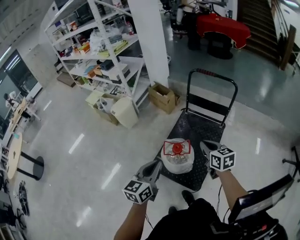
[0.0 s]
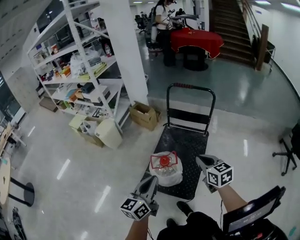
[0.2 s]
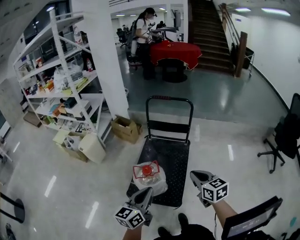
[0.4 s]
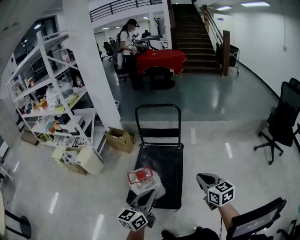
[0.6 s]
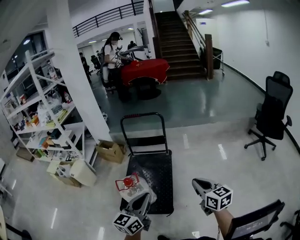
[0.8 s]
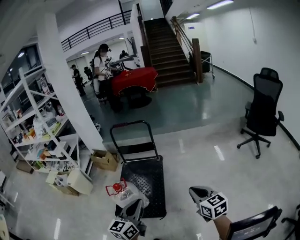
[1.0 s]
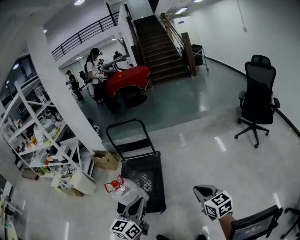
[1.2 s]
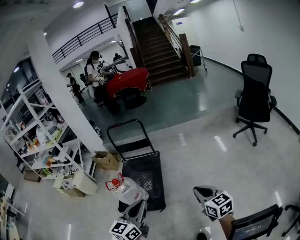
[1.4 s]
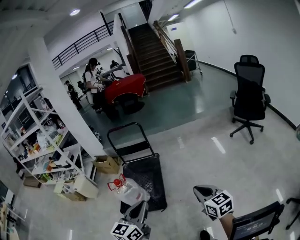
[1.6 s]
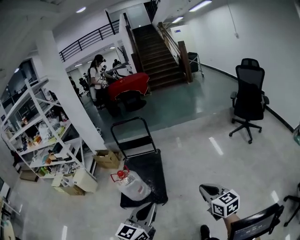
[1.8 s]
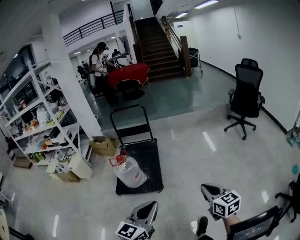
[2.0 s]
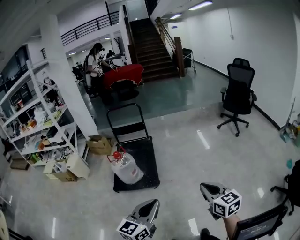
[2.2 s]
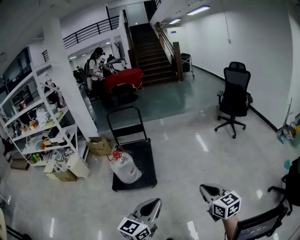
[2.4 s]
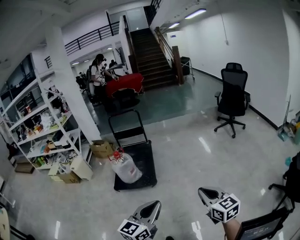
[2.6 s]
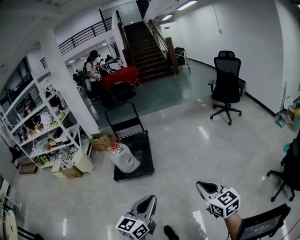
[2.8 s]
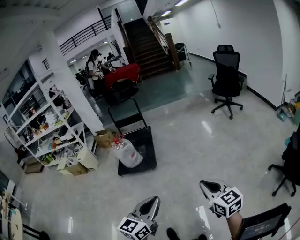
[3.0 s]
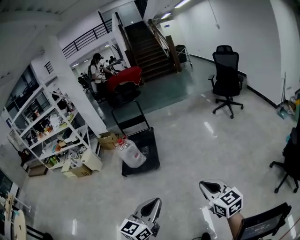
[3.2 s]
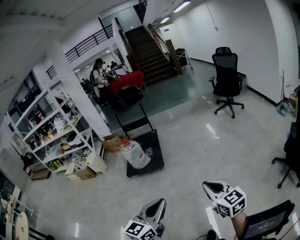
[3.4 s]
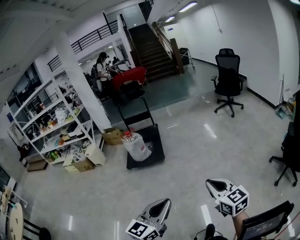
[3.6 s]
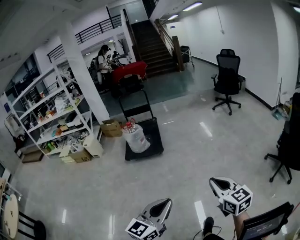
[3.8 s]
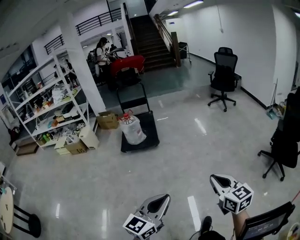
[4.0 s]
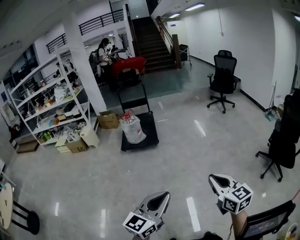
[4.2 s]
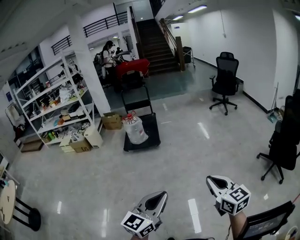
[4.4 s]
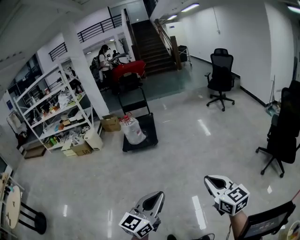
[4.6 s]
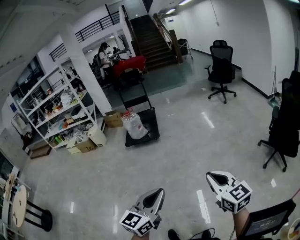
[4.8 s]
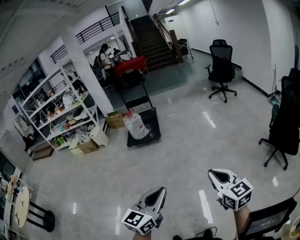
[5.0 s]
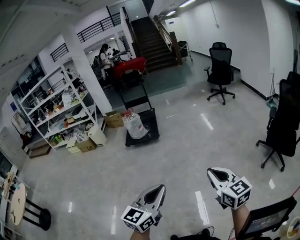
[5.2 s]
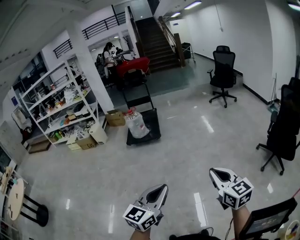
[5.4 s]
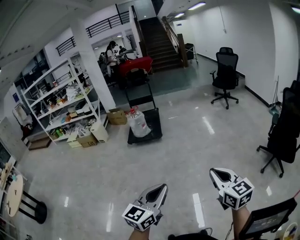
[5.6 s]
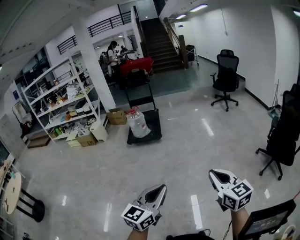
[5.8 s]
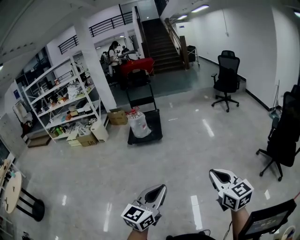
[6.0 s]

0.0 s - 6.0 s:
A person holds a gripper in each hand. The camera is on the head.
0.0 s - 1.6 s: The two grippers travel together, roughly 60 cm. The right gripper swivels about 30 degrees. The left gripper turns by about 30 degrees.
1.6 s - 3.0 s: Both grippers are carried backward, some 60 cm.
3.0 s - 4.4 s: The two grippers travel together, backward, about 40 cm.
4.4 s - 6.0 s: The grippers both shift backward and to the right by about 15 cm.

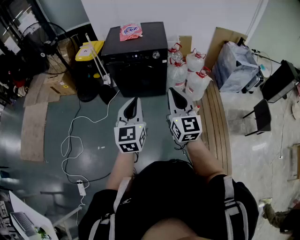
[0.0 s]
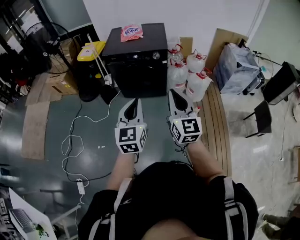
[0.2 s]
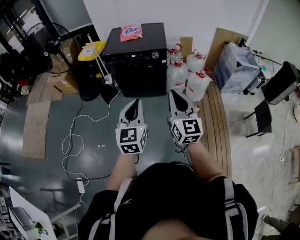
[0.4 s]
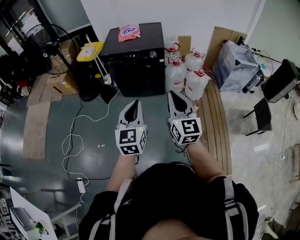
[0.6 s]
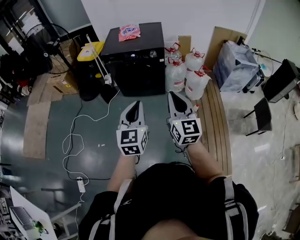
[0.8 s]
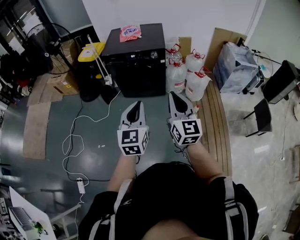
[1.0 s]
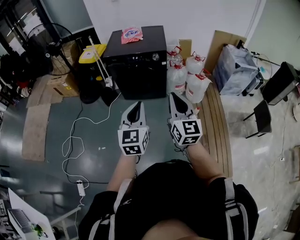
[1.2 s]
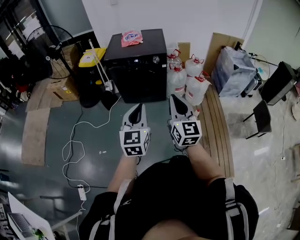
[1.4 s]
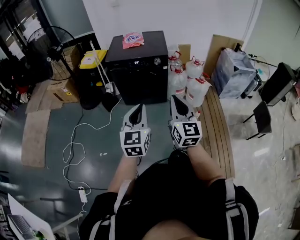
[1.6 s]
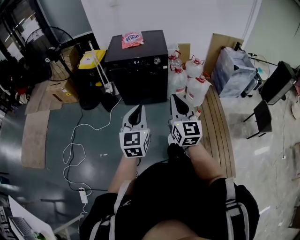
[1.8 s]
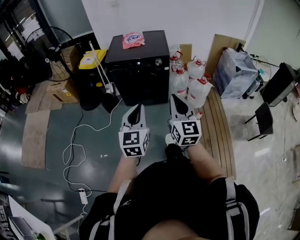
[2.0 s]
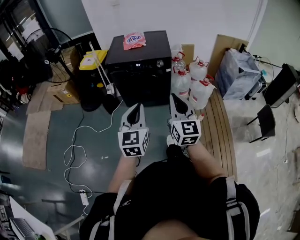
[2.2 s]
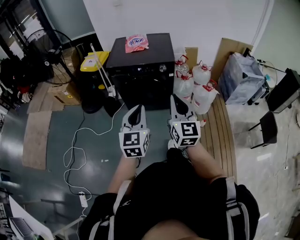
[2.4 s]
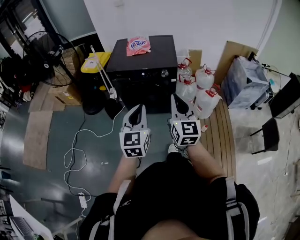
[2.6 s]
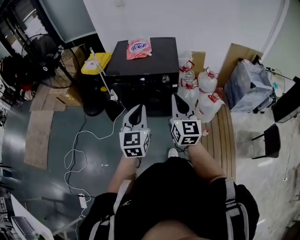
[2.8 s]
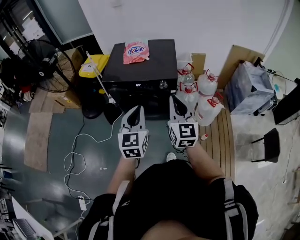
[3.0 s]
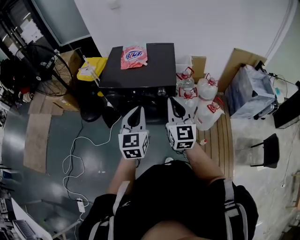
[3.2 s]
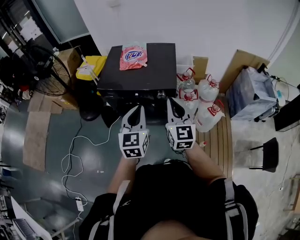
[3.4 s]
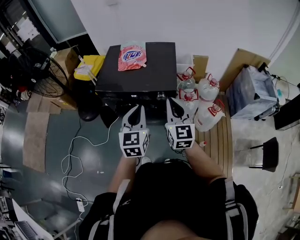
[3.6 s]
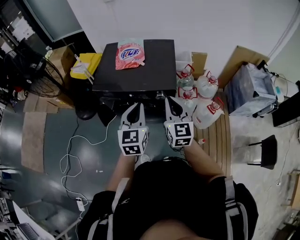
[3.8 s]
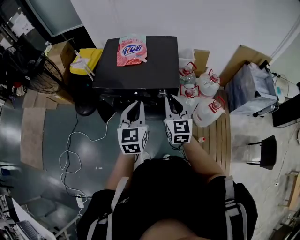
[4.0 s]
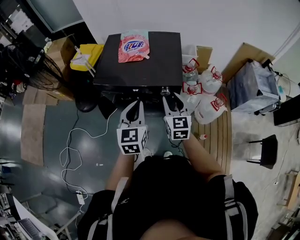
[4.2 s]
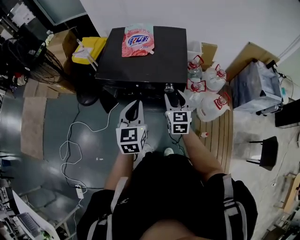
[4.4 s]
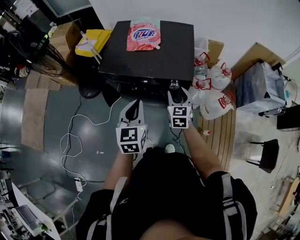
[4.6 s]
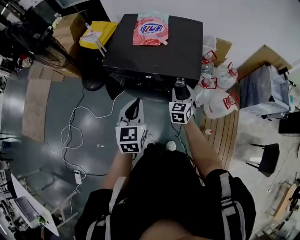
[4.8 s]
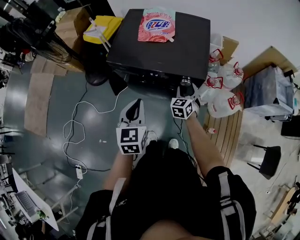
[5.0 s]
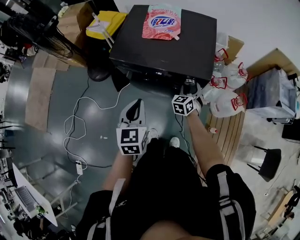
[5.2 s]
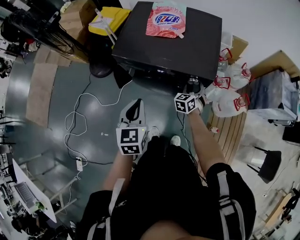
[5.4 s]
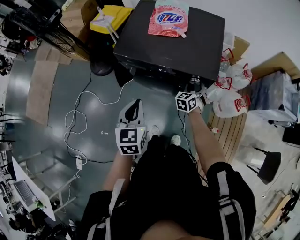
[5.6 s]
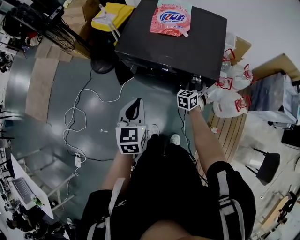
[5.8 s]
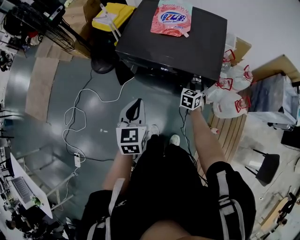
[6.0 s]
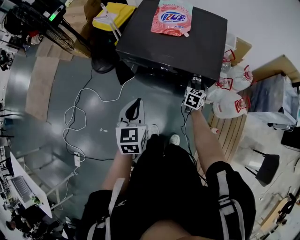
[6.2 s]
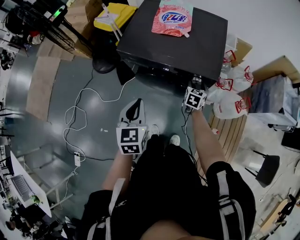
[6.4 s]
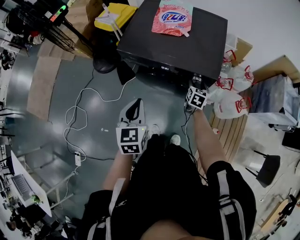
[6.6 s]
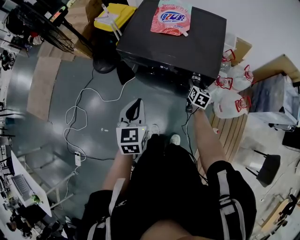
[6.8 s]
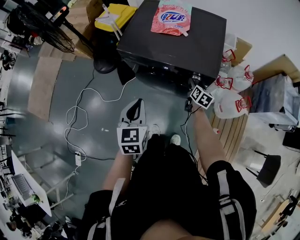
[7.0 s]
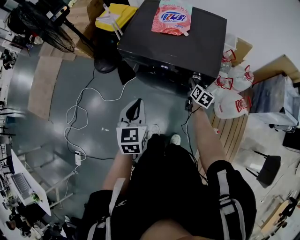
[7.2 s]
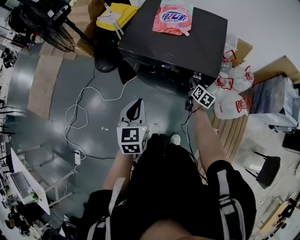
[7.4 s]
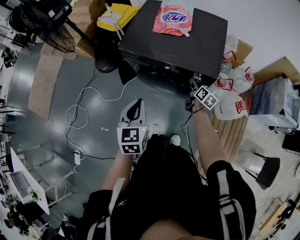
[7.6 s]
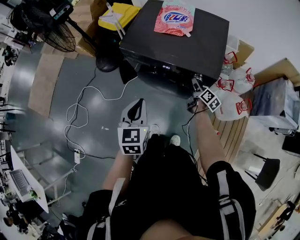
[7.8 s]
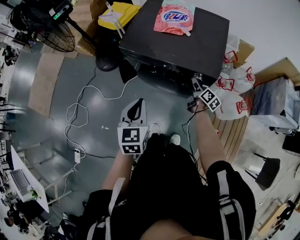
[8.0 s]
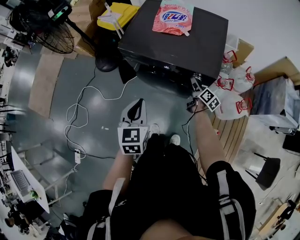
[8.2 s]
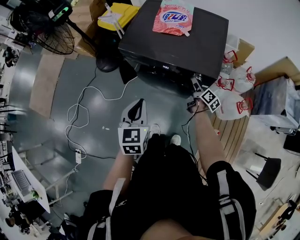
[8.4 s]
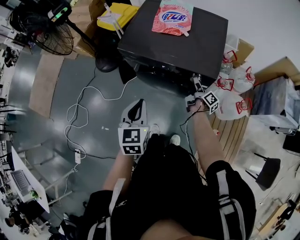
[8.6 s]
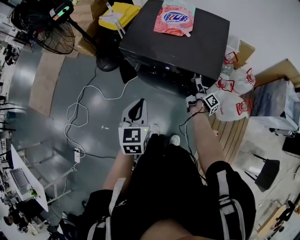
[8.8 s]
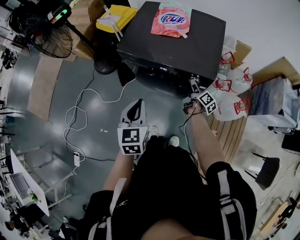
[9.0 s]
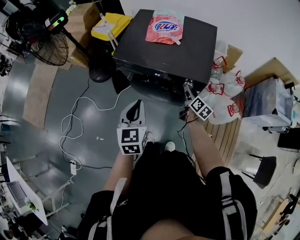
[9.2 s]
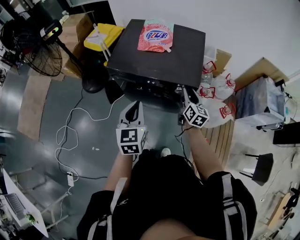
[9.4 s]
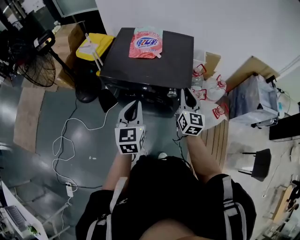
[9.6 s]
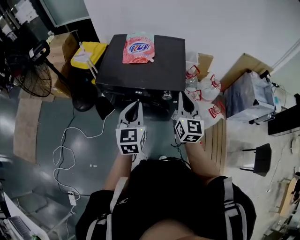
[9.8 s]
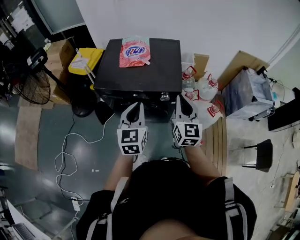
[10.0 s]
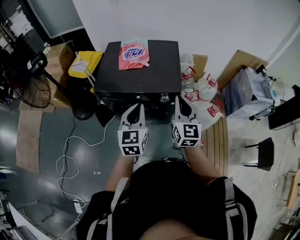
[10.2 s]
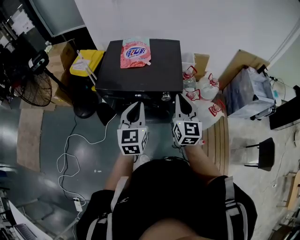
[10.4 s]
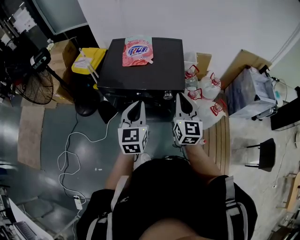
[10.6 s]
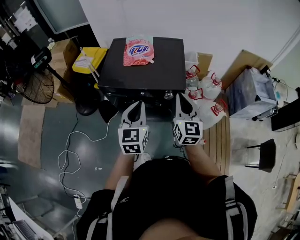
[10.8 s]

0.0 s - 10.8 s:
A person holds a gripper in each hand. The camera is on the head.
0.0 s - 1.6 s: The grippers both shift backward by approximately 5 cm.
1.6 s - 3.0 s: The grippers both shift forward by some 35 cm.
3.0 s - 4.6 s: The left gripper heads forward and downward, covering about 20 cm; the right gripper shifts approximately 30 cm forward and downward, swivels approximately 30 degrees, and opens.
4.6 s - 6.2 s: The left gripper travels to the left by roughly 5 cm; the right gripper is displaced downward and forward by approximately 15 cm, and rotates about 20 degrees.
6.2 s - 7.8 s: The right gripper rolls clockwise, seen from behind, by about 50 degrees.
7.8 s - 9.2 s: The right gripper is displaced upward by roughly 5 cm.
9.2 s - 10.8 s: The right gripper shifts some 25 cm upward, rotates around the line of its fingers by approximately 40 degrees, counterclockwise from behind, and closes up. The left gripper goes roughly 10 cm upward and to the right.

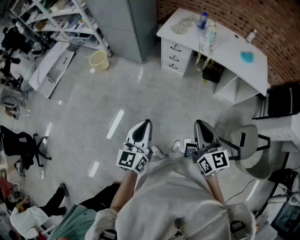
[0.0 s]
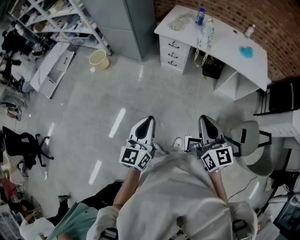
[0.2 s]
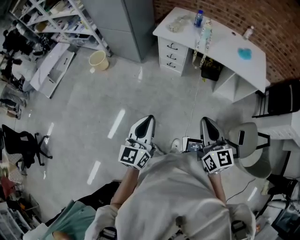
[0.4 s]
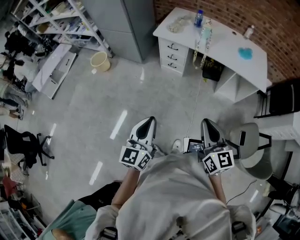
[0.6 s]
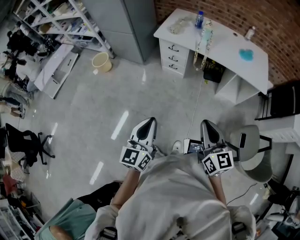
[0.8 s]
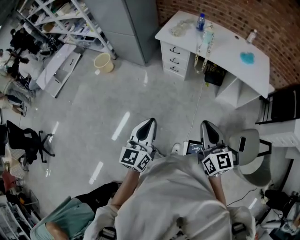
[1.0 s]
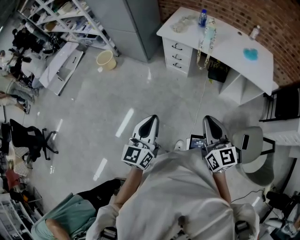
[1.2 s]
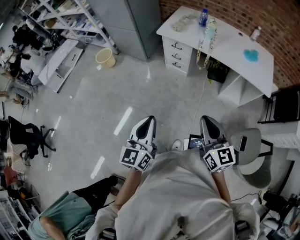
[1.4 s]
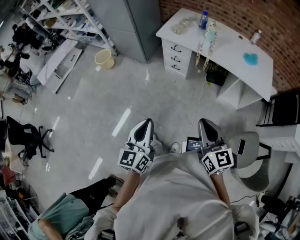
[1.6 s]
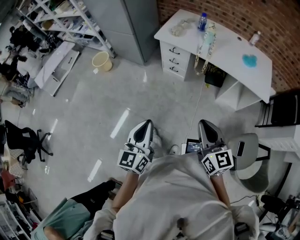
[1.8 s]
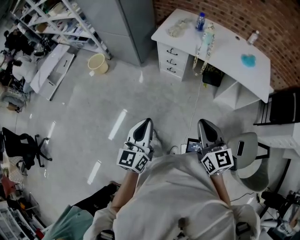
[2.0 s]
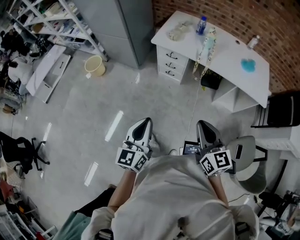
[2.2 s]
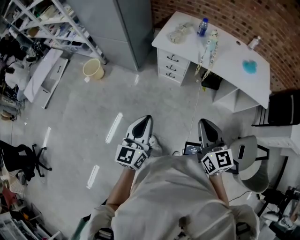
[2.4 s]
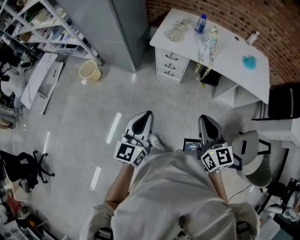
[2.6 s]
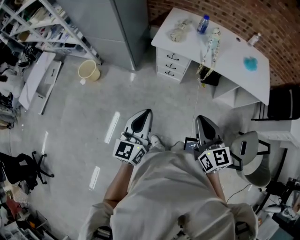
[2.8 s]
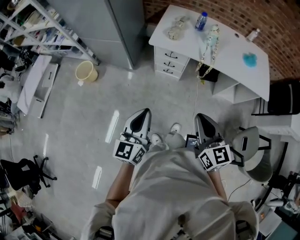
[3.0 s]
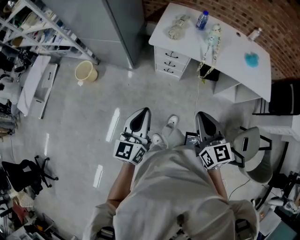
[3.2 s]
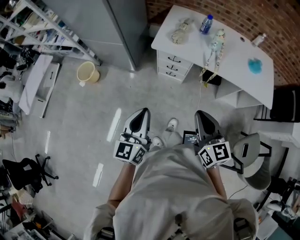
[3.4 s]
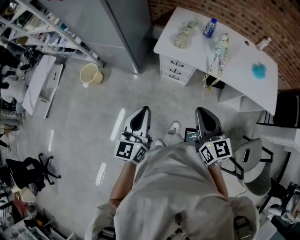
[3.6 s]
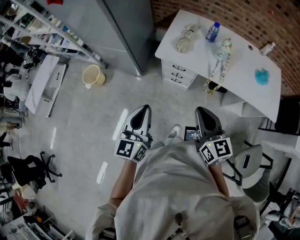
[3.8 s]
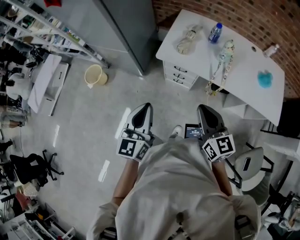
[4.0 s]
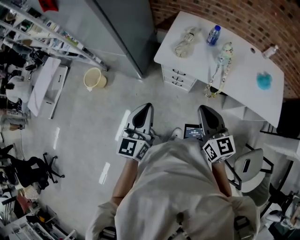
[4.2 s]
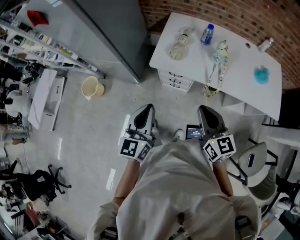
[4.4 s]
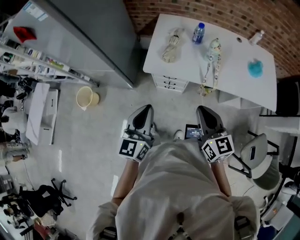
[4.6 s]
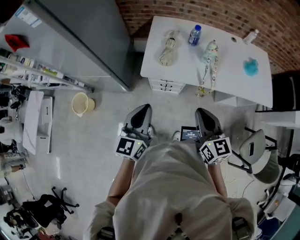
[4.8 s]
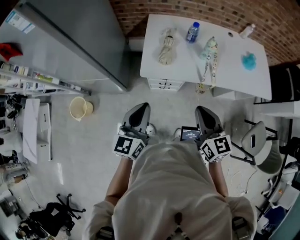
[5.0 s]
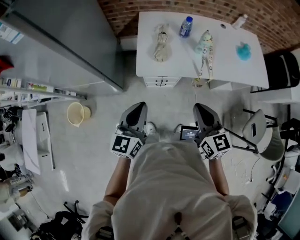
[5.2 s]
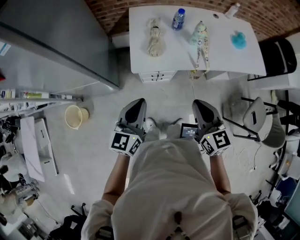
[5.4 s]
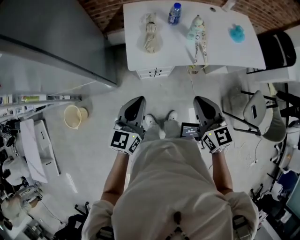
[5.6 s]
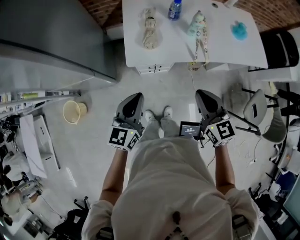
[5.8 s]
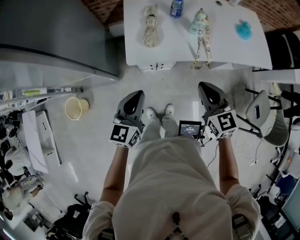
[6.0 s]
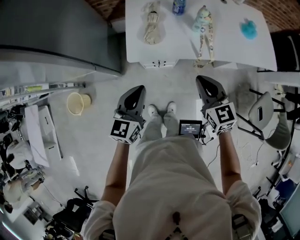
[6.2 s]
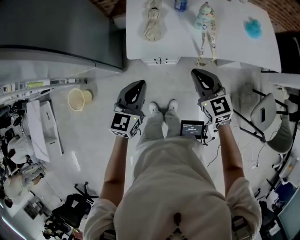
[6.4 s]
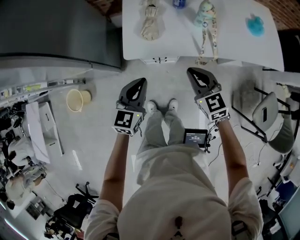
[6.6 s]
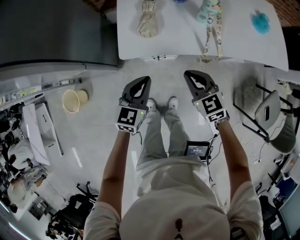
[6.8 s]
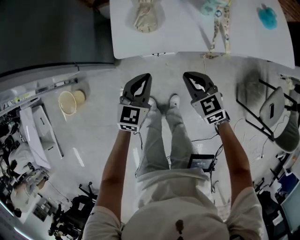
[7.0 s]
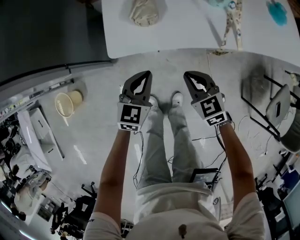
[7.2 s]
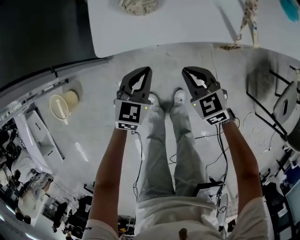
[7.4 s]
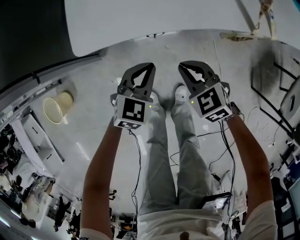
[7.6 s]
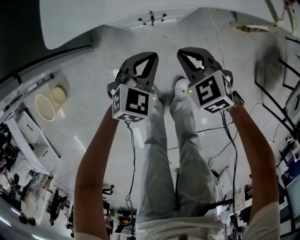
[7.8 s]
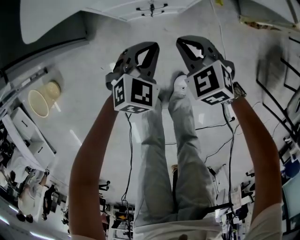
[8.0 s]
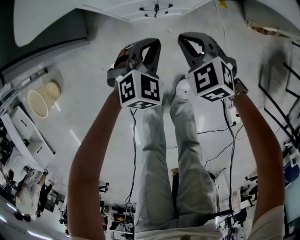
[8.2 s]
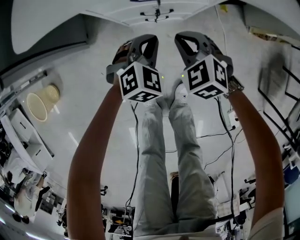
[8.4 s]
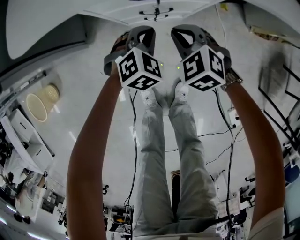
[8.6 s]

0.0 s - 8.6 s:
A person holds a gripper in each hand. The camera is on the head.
0.0 s - 1.4 s: Both grippers travel together to the right, roughly 10 cm.
1.4 s - 2.8 s: The two grippers go about 25 cm forward and to the left.
2.8 s - 4.4 s: Both grippers move forward, about 25 cm.
4.4 s - 5.8 s: The right gripper shifts by about 10 cm, and swivels about 20 degrees. Meanwhile the left gripper ends up roughly 15 cm from where it was, and changes its angle by roughly 30 degrees.
5.8 s - 7.2 s: The two grippers go approximately 30 cm downward. The right gripper swivels roughly 20 degrees, while the left gripper changes its angle by about 20 degrees.
7.2 s - 8.6 s: Both grippers travel together downward, some 30 cm. The right gripper rotates roughly 20 degrees; the left gripper turns by roughly 40 degrees.
